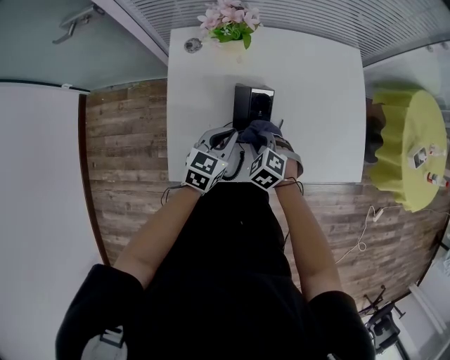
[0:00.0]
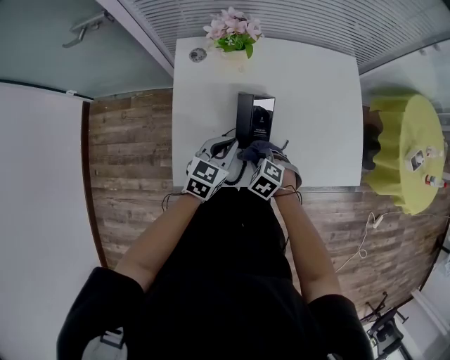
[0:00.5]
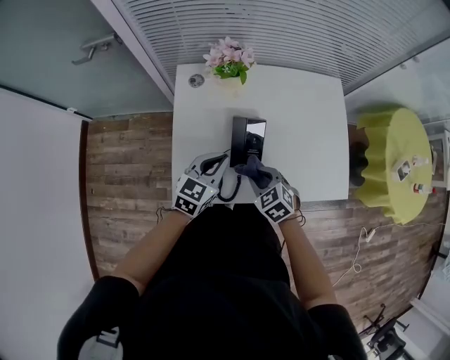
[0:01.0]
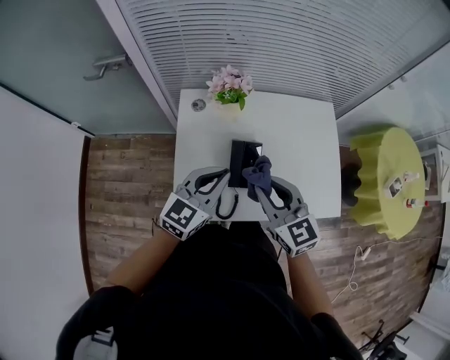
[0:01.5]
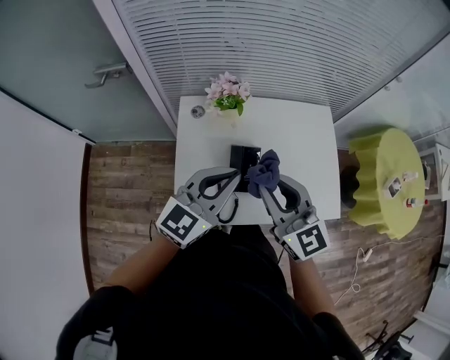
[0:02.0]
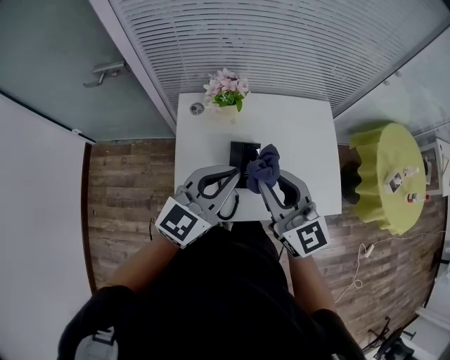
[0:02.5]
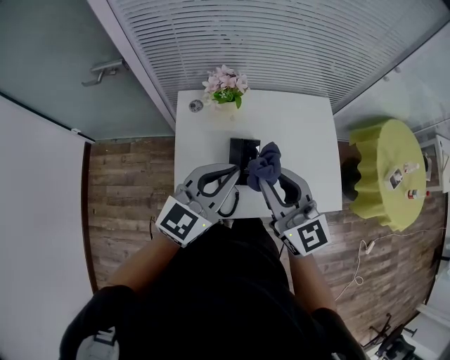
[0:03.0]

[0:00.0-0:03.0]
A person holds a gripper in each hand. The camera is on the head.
0:00.0 to 0:01.5: Both grippers move upward, roughly 25 cm. The right gripper tips its fingers upward by roughly 50 degrees. Meanwhile the left gripper rotates about 20 degrees.
0:01.5 to 0:03.0: Both grippers move upward, approximately 10 cm.

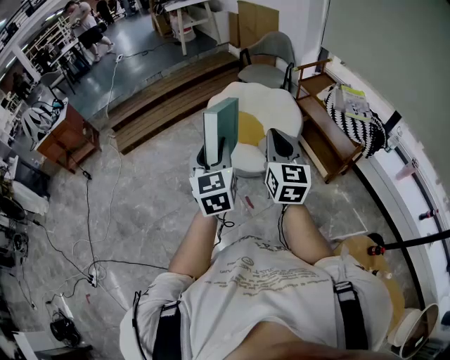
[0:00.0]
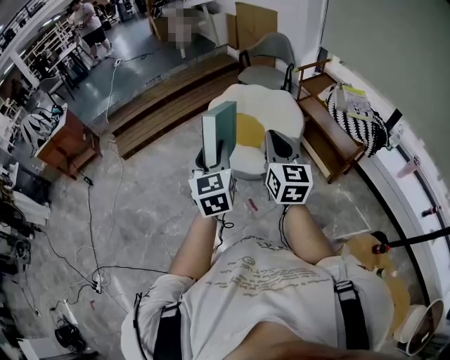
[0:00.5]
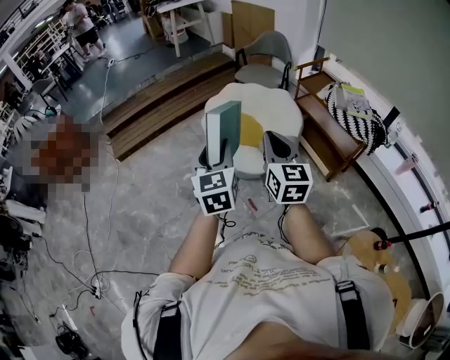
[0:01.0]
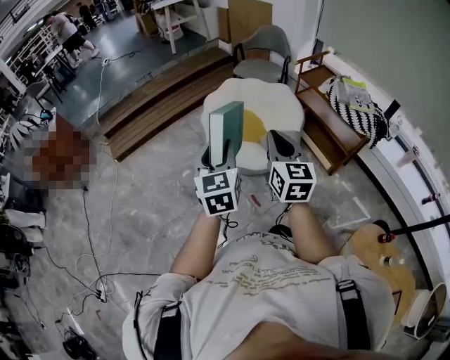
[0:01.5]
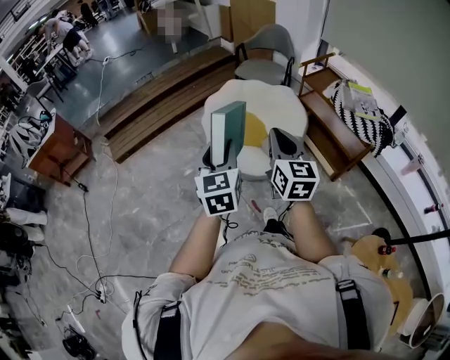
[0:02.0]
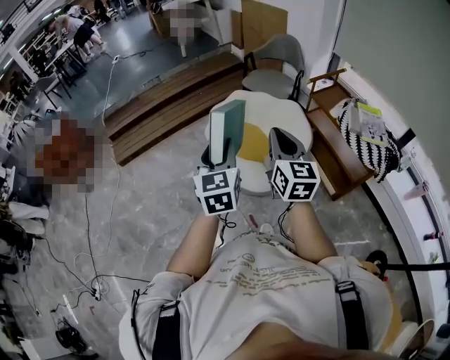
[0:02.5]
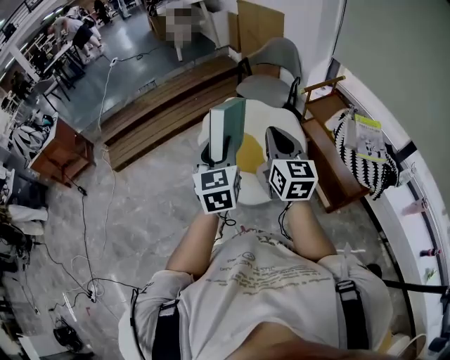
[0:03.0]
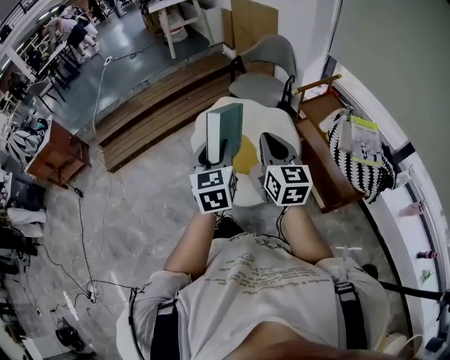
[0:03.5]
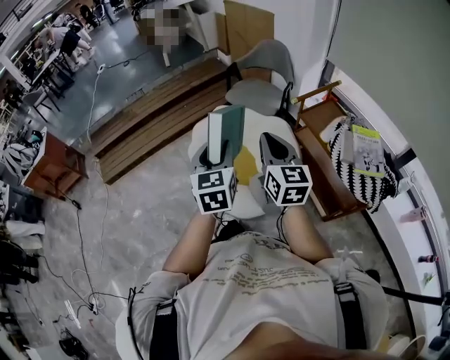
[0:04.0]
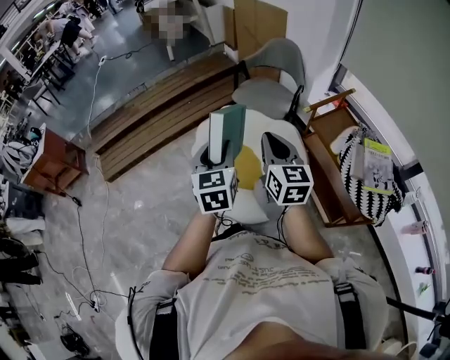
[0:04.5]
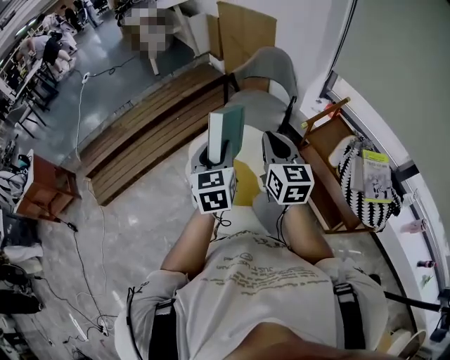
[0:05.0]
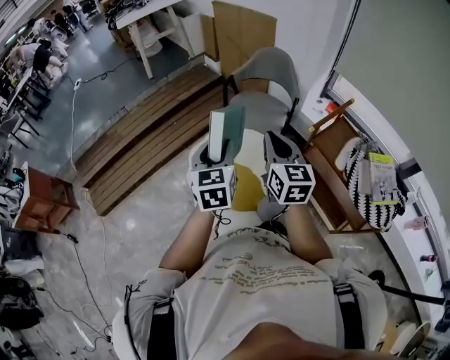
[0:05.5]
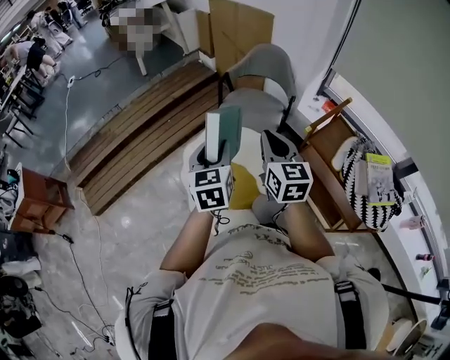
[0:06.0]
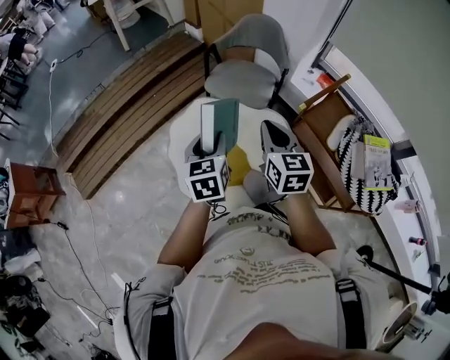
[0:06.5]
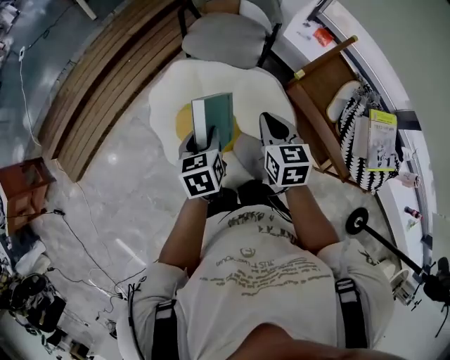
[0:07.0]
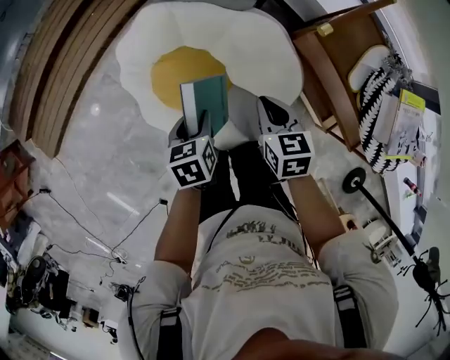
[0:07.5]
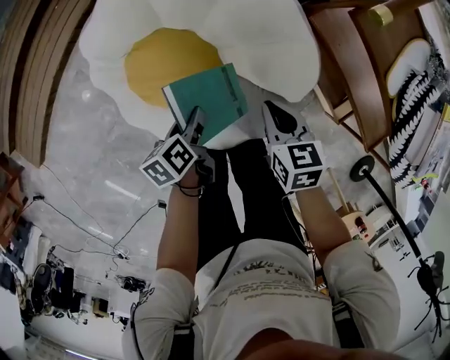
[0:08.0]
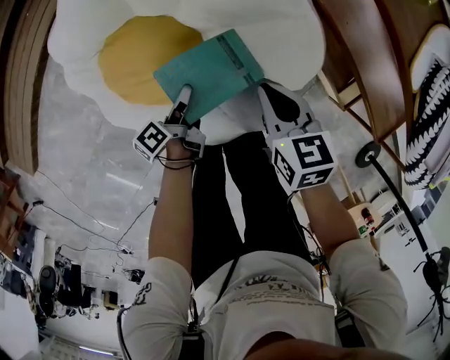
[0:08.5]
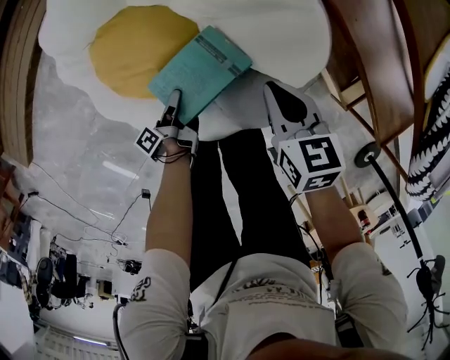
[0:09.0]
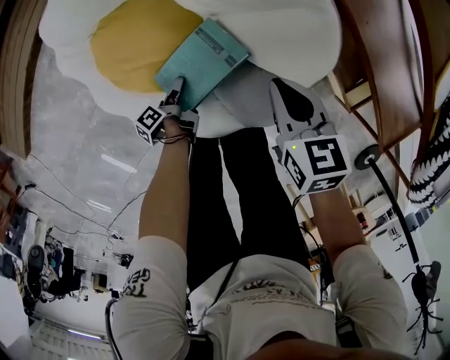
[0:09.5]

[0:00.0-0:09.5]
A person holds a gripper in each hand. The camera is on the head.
0:00.0 to 0:02.0: The two grippers go about 10 cm forward.
0:02.0 to 0:04.0: The grippers both shift forward and to the right by about 30 cm.
0:04.0 to 0:05.5: The two grippers go some 25 cm forward.
0:05.5 to 0:07.5: The grippers both shift downward by roughly 35 cm. The left gripper tilts its fingers approximately 40 degrees downward; the right gripper points its fingers roughly 40 degrees further downward.
0:07.5 to 0:09.5: The left gripper heads downward, covering about 40 cm, rotates around the line of its fingers by about 70 degrees, counterclockwise from behind, and opens its fingers, while the right gripper is displaced downward by about 20 cm.

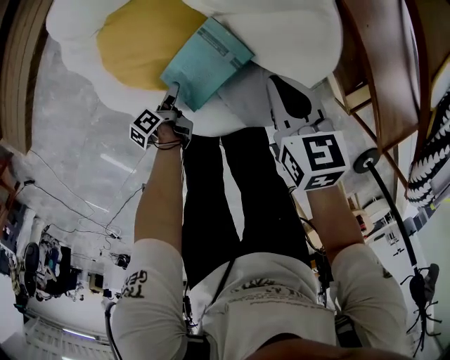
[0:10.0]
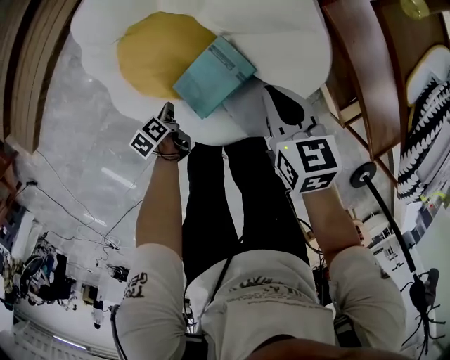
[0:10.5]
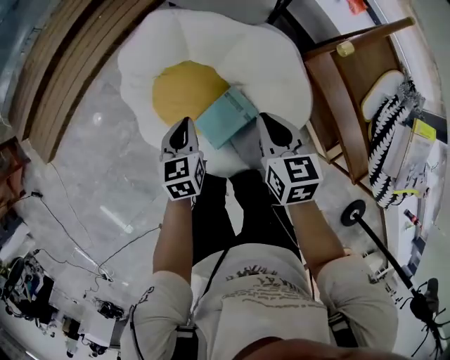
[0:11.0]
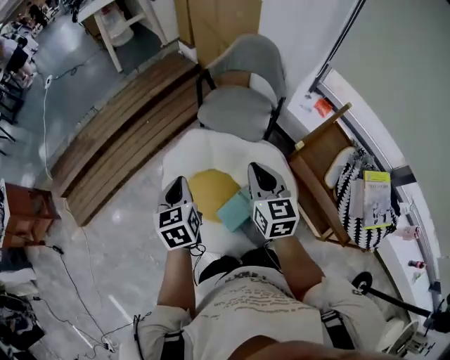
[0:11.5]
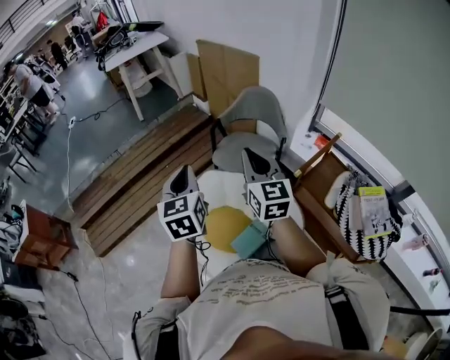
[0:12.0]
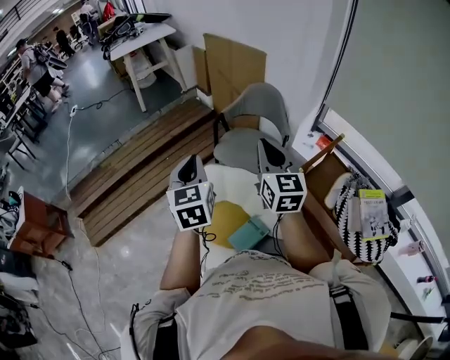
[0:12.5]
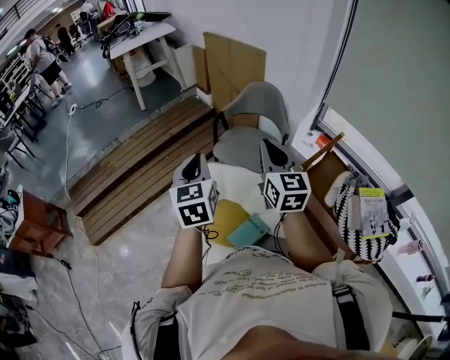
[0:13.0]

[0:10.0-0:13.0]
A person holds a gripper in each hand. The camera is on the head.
0:10.0 to 0:11.5: The right gripper moves upward, about 40 cm, and points its fingers approximately 30 degrees further upward; the left gripper moves upward, some 70 cm, rolls clockwise, seen from behind, by about 70 degrees, and closes up.
0:11.5 to 0:13.0: The two grippers go approximately 20 cm upward. The left gripper turns by some 20 degrees.

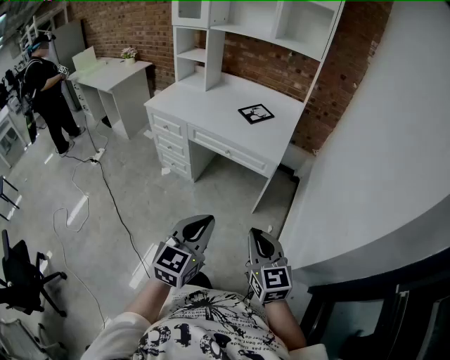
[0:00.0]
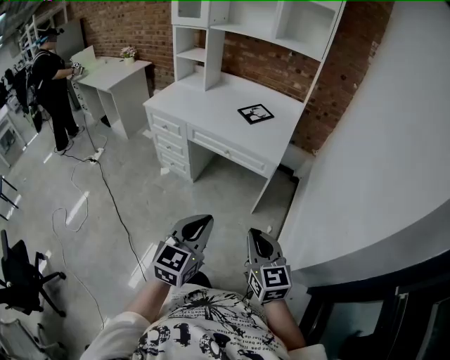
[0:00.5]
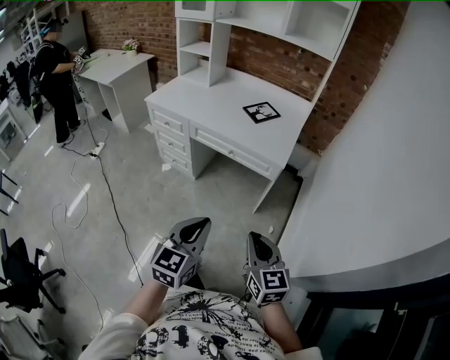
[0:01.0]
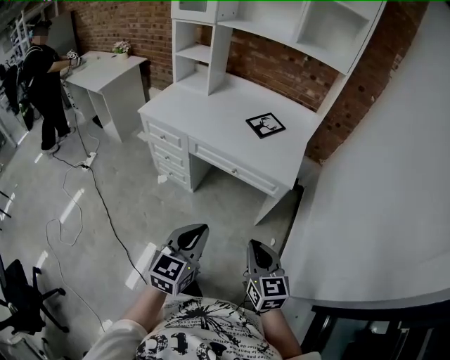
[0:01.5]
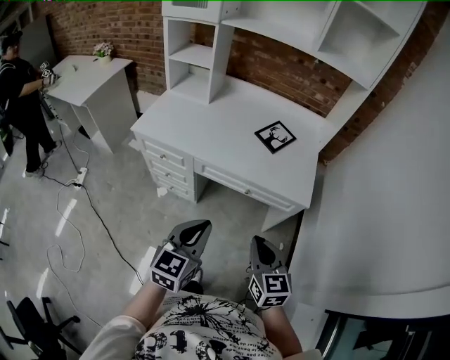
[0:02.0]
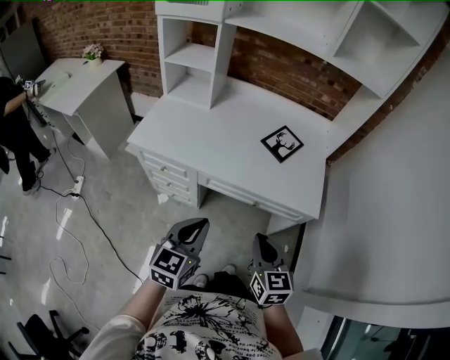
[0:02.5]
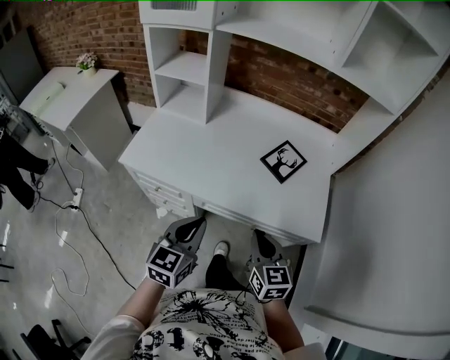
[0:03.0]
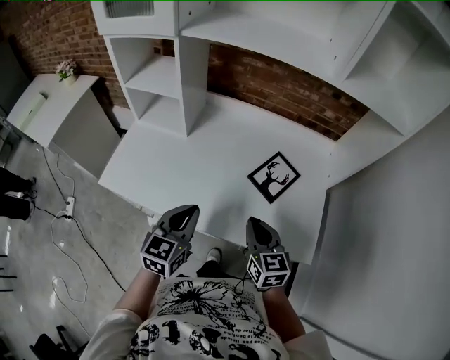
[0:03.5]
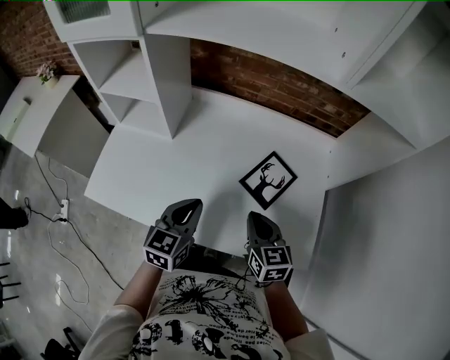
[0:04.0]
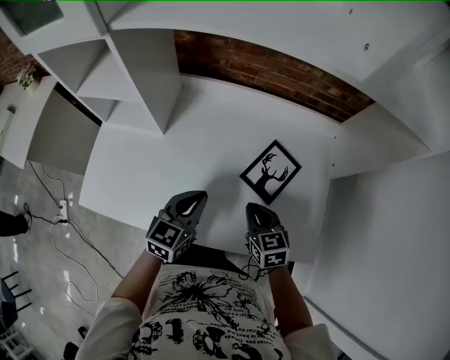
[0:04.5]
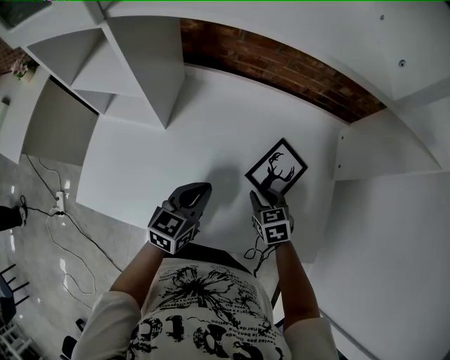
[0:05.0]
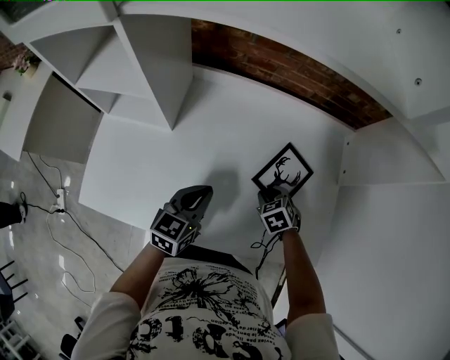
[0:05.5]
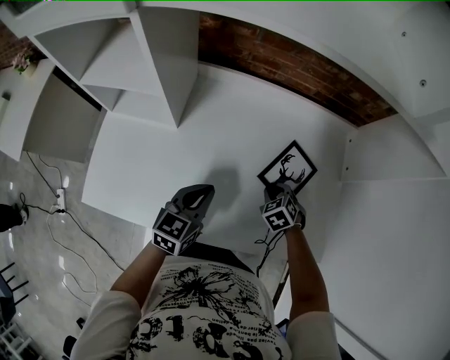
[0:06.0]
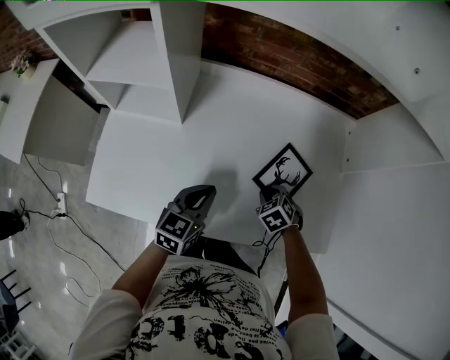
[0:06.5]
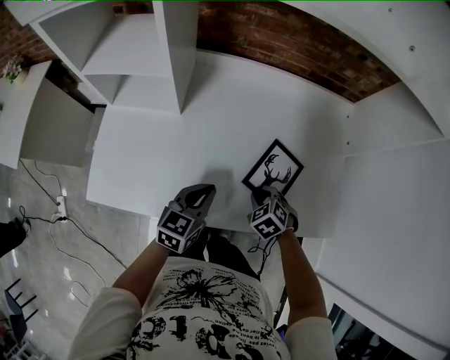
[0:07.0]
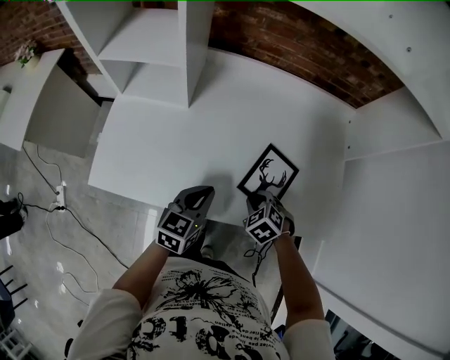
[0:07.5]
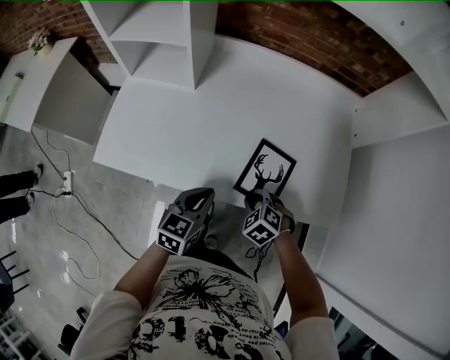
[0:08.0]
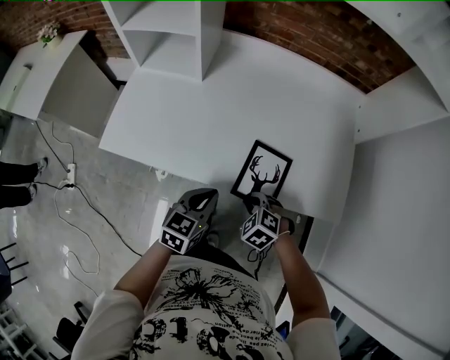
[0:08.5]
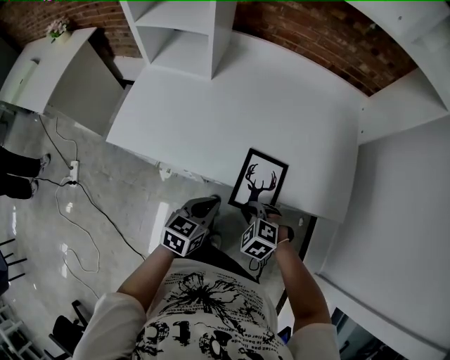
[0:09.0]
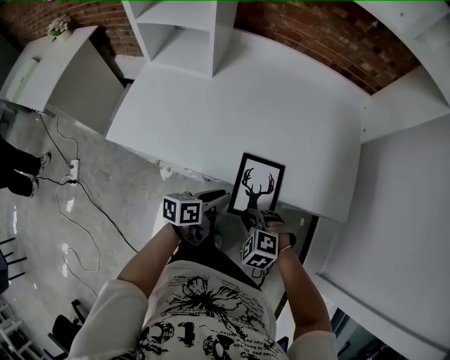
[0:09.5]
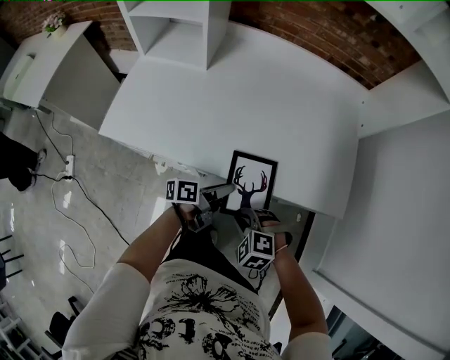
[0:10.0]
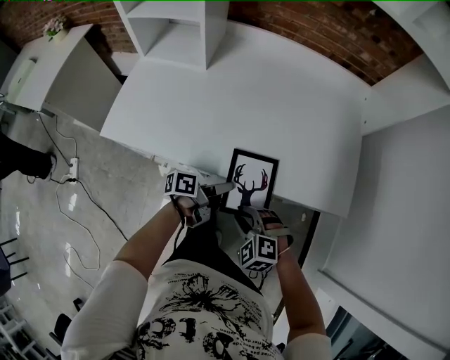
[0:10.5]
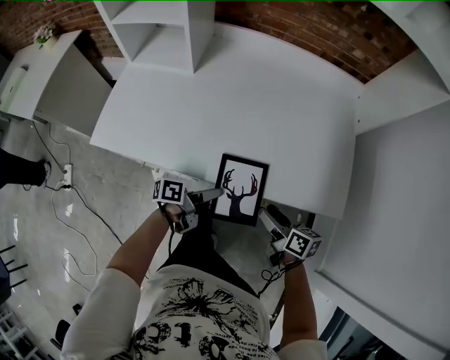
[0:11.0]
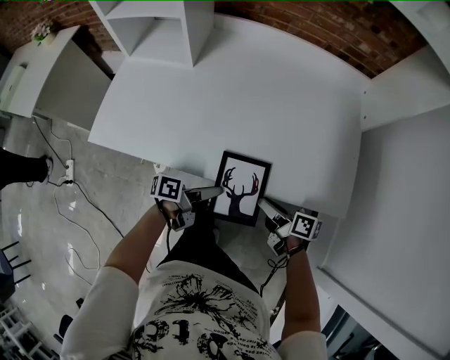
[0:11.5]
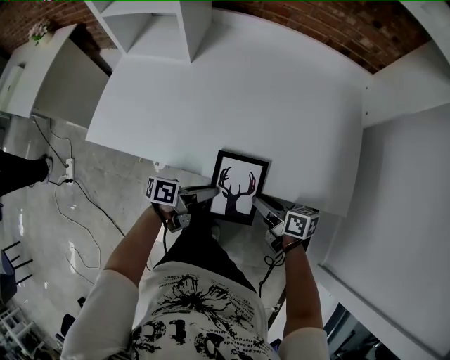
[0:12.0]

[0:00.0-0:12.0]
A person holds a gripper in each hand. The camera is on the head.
0:00.0 to 0:02.0: The two grippers go some 40 cm forward and to the left.
0:02.0 to 0:04.0: The two grippers travel together, forward, approximately 50 cm.
0:04.0 to 0:06.0: The right gripper heads downward and forward, covering roughly 20 cm, and tips its fingers downward by about 40 degrees. Meanwhile the left gripper shifts about 10 cm downward and forward.
0:06.0 to 0:08.0: Both grippers travel together backward, about 20 cm.
0:08.0 to 0:10.0: The left gripper travels downward, backward and to the right by approximately 15 cm, and rotates around the line of its fingers by roughly 60 degrees, counterclockwise from behind, while the right gripper heads backward, covering roughly 15 cm, and changes its angle by approximately 20 degrees.
0:10.0 to 0:12.0: The right gripper is displaced forward and to the right by some 10 cm, rotates around the line of its fingers by approximately 90 degrees, clockwise from behind, and opens, then closes once more.
